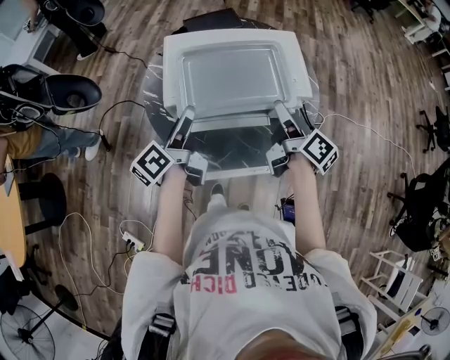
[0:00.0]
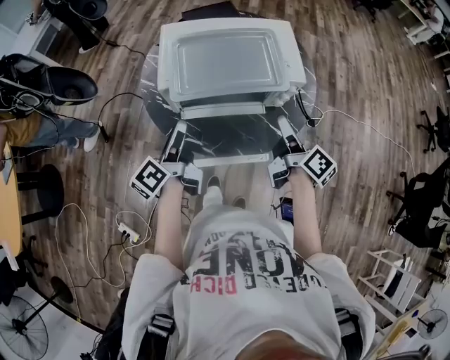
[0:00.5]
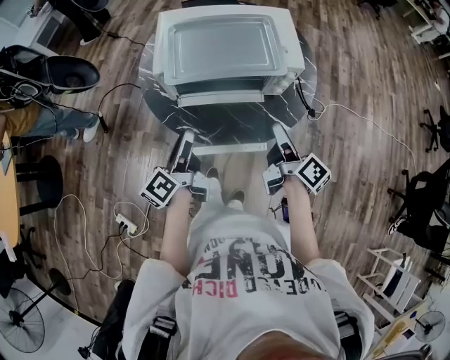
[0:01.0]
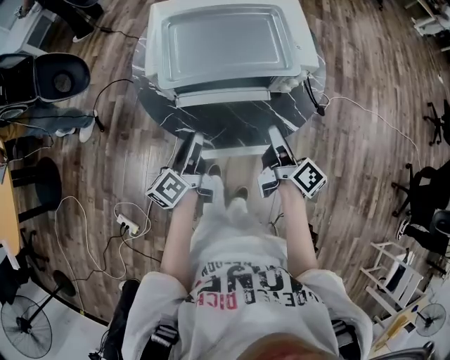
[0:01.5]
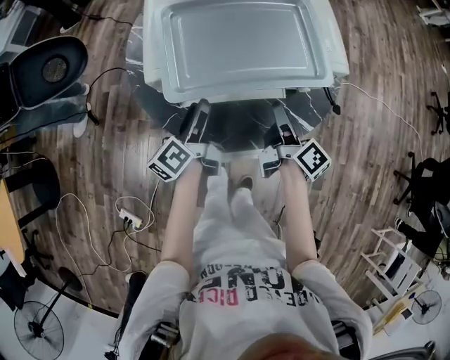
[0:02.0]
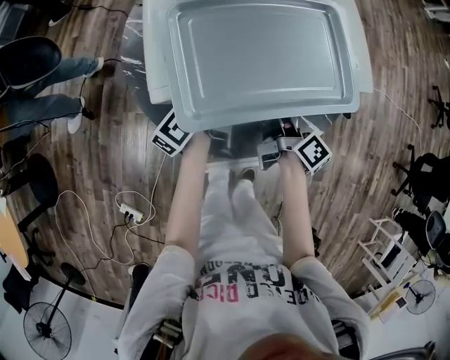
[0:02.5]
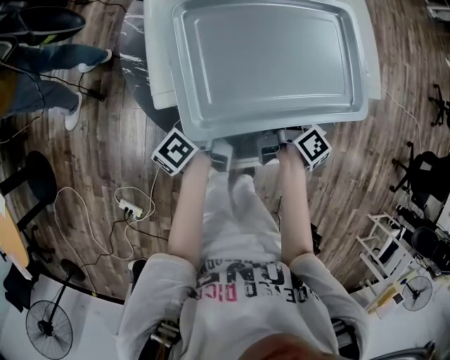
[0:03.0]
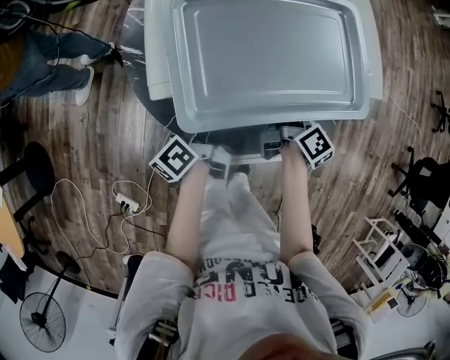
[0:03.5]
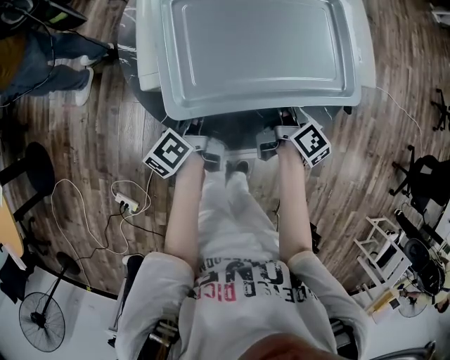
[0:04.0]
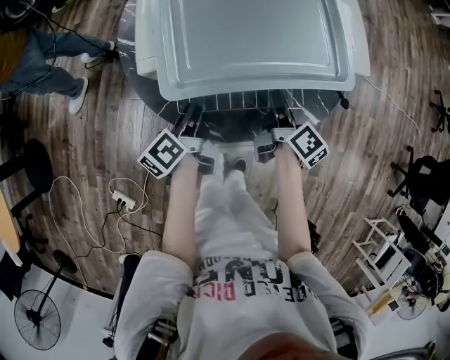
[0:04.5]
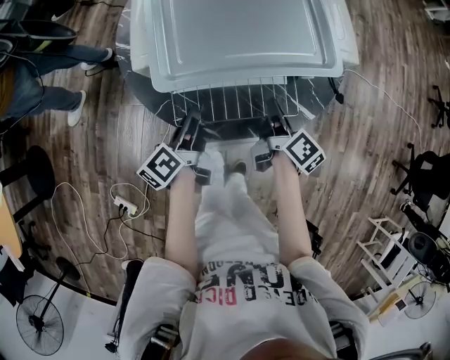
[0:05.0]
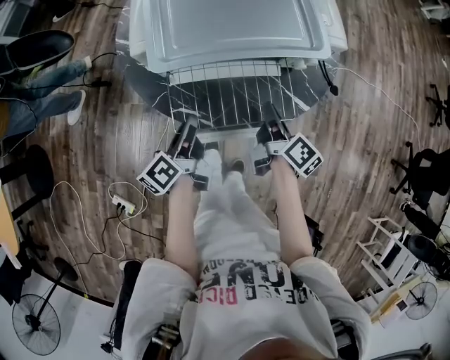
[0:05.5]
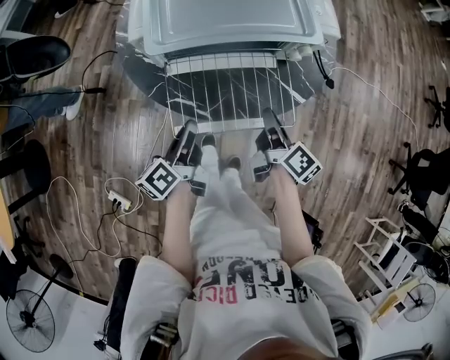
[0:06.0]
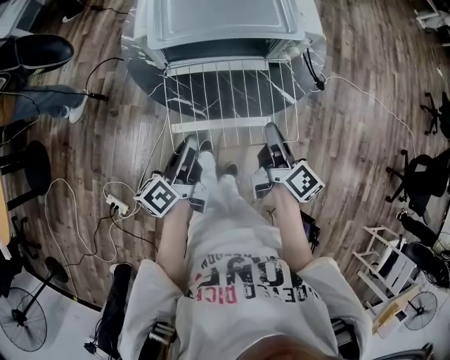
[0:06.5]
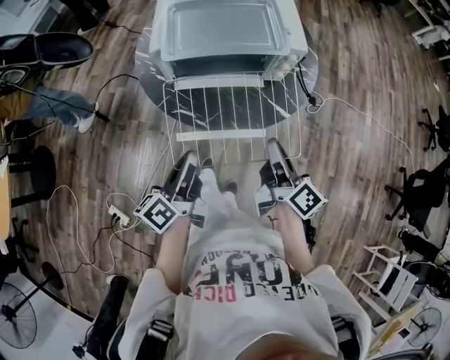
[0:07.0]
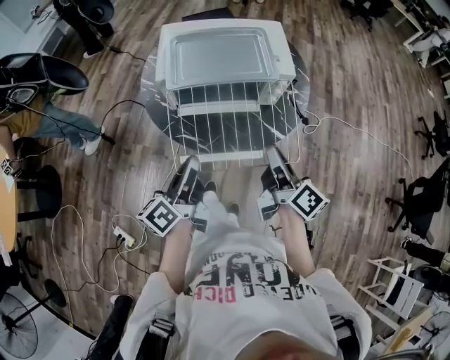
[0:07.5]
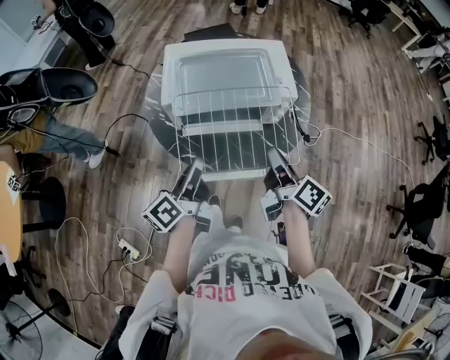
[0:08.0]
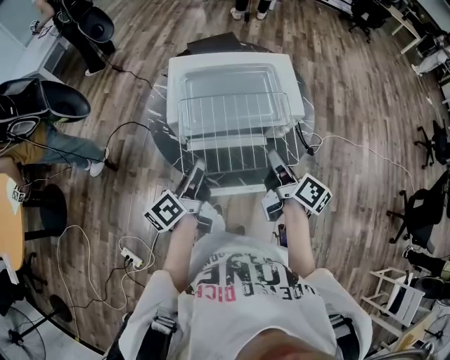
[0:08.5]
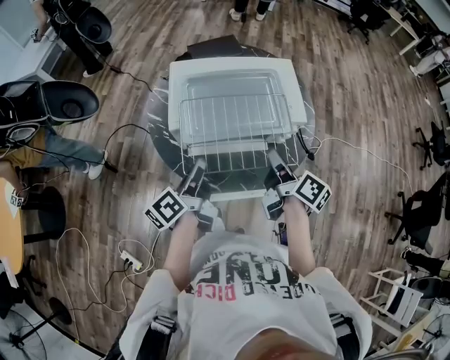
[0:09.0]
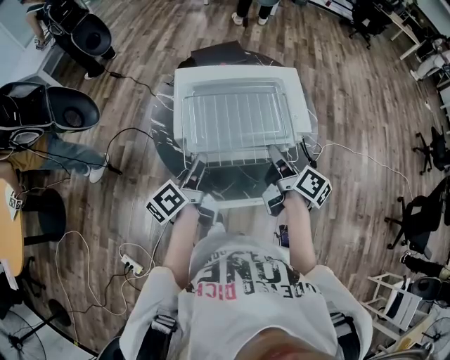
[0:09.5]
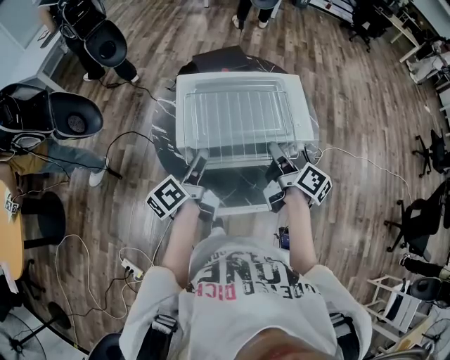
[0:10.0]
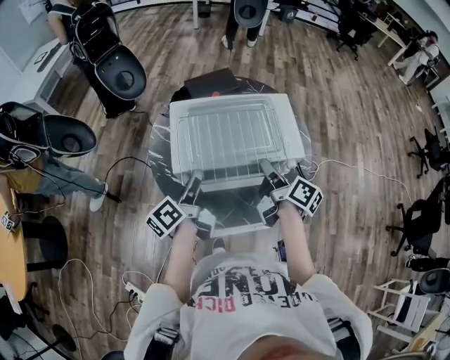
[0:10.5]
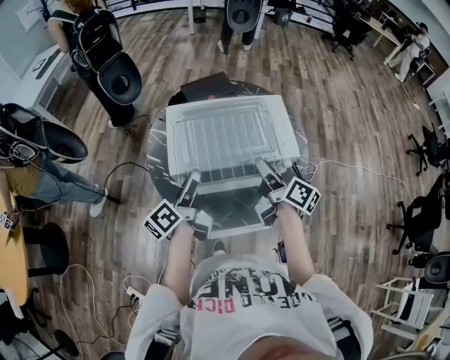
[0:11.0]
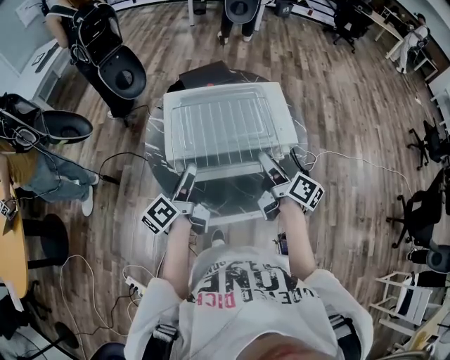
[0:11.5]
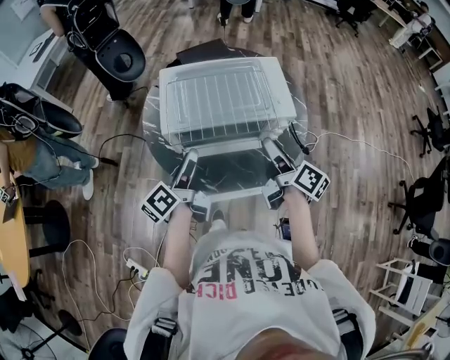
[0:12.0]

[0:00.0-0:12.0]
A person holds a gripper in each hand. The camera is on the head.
0:00.0 to 0:02.0: The grippers both shift downward by approximately 15 cm.
0:02.0 to 0:04.0: The left gripper travels forward and back again, roughly 10 cm each way, and closes up. Meanwhile the right gripper ends up approximately 5 cm from where it was, and closes up.
0:04.0 to 0:06.0: The two grippers go about 15 cm backward.
0:06.0 to 0:08.0: The grippers both shift upward by some 15 cm.
0:08.0 to 0:10.0: Both grippers travel together forward, approximately 15 cm.
0:10.0 to 0:12.0: Both grippers move backward, about 5 cm. The left gripper opens up. The right gripper opens up.

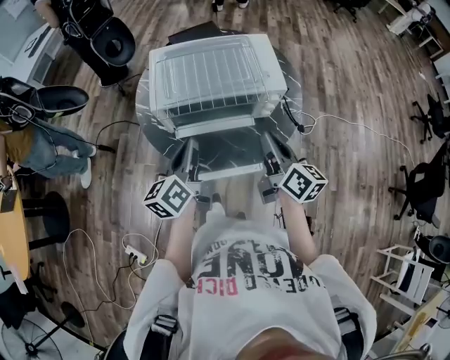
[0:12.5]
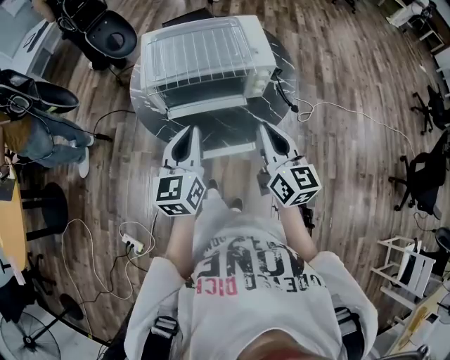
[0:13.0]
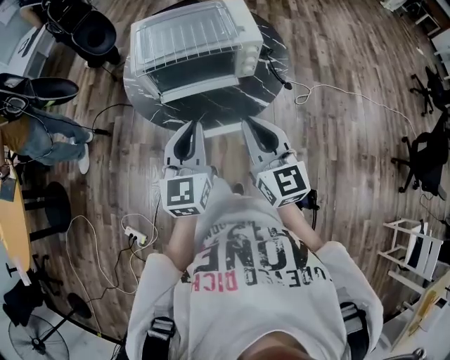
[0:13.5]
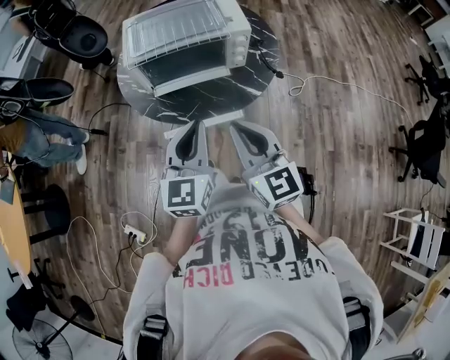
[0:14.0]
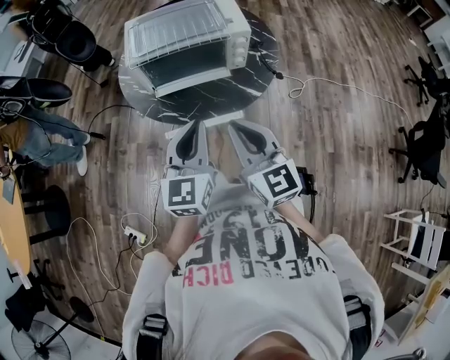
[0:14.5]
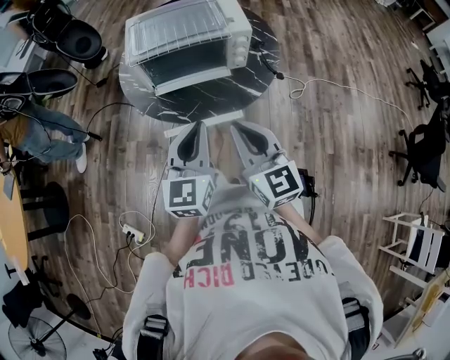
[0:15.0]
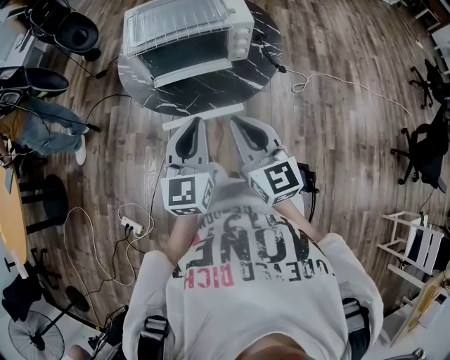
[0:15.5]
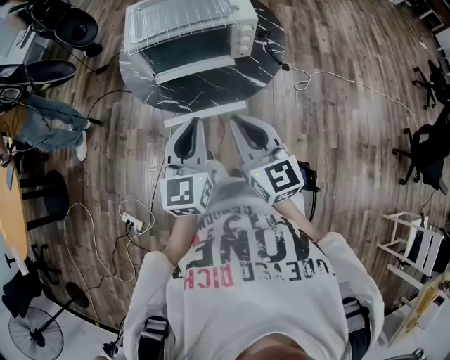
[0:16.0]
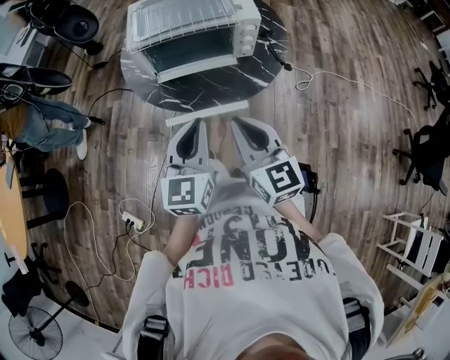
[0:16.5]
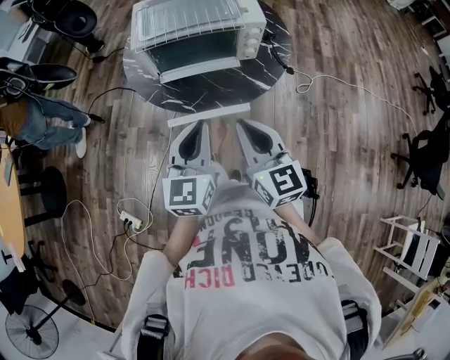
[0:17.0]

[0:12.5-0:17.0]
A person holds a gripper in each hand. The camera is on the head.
0:12.5 to 0:14.5: The right gripper travels backward by roughly 20 cm, and rolls counterclockwise, seen from behind, by some 40 degrees. Meanwhile the left gripper heads backward and to the right, covering approximately 20 cm, and rotates about 40 degrees.
0:14.5 to 0:17.0: The grippers make only small movements.

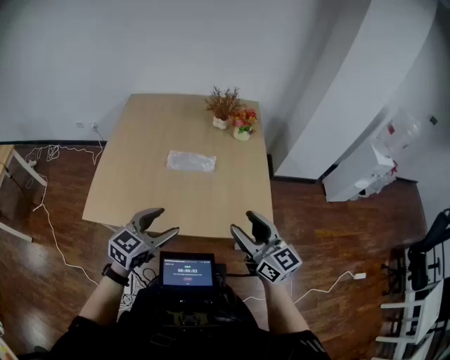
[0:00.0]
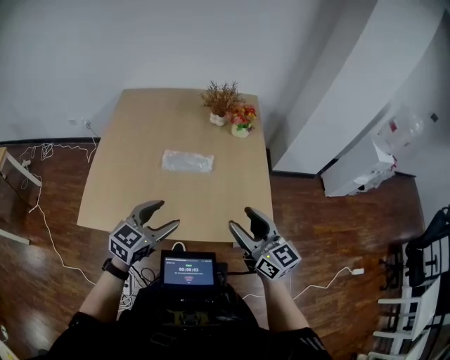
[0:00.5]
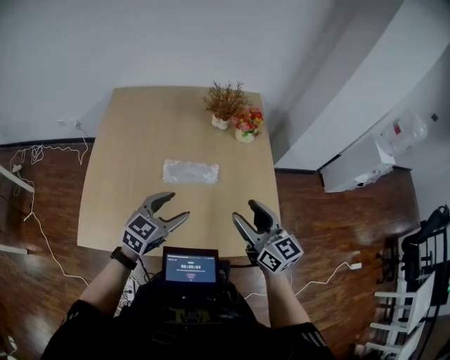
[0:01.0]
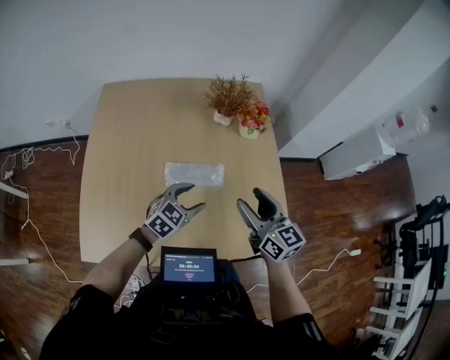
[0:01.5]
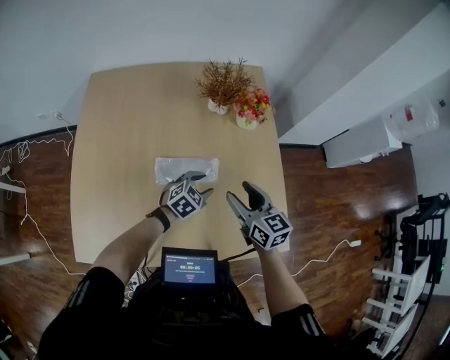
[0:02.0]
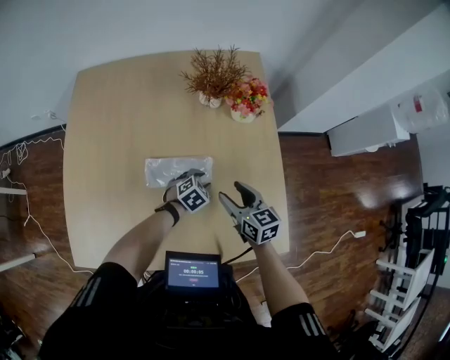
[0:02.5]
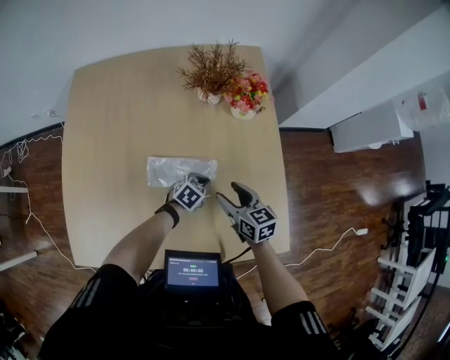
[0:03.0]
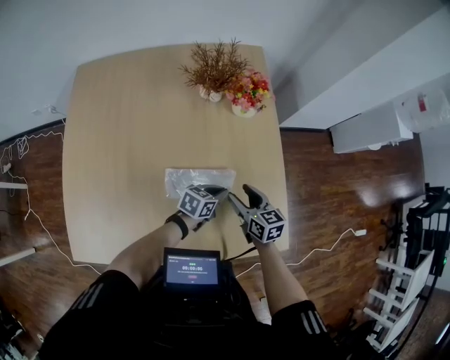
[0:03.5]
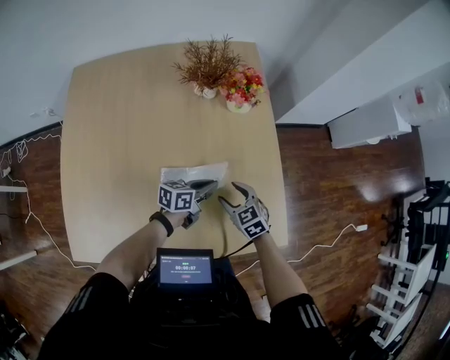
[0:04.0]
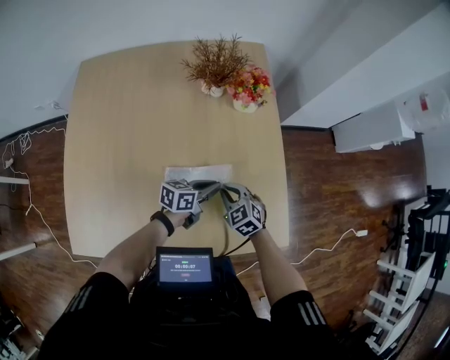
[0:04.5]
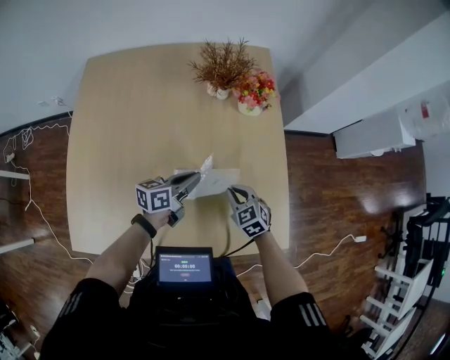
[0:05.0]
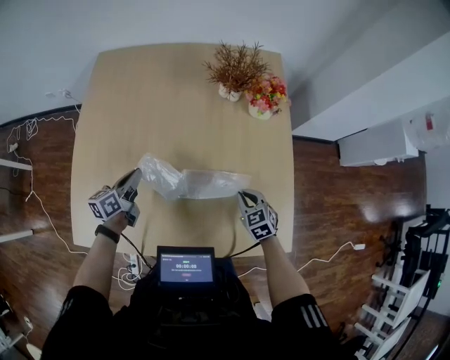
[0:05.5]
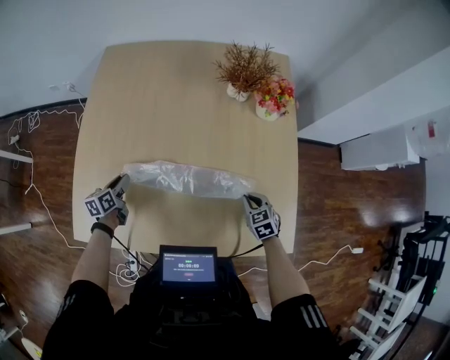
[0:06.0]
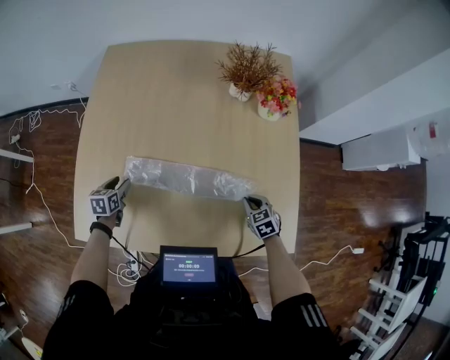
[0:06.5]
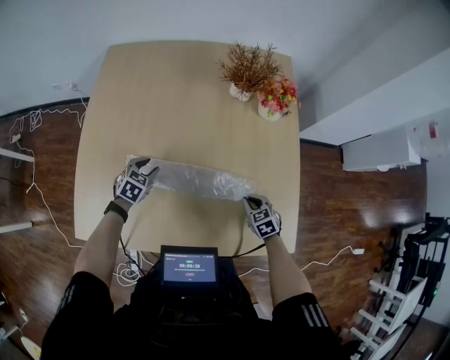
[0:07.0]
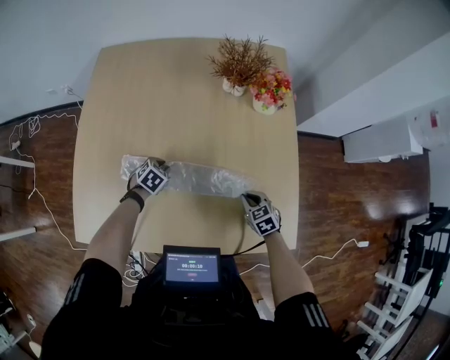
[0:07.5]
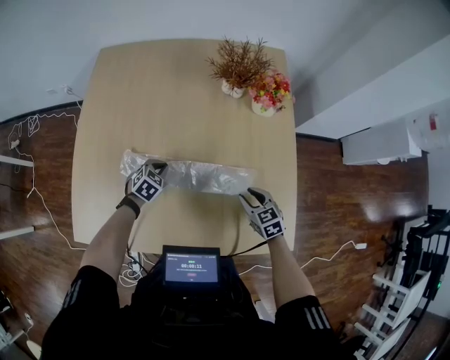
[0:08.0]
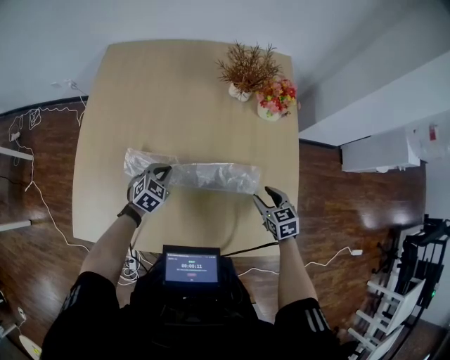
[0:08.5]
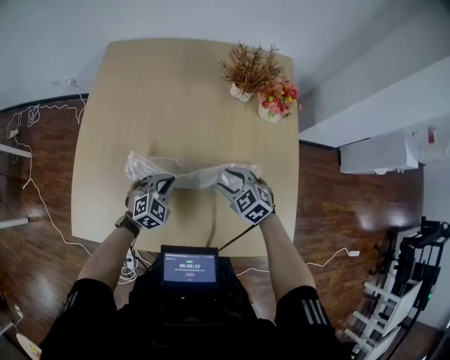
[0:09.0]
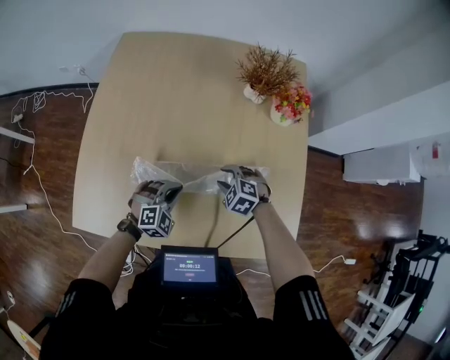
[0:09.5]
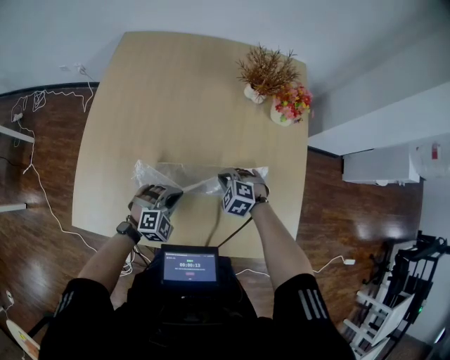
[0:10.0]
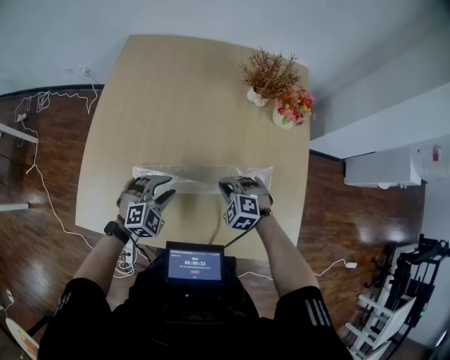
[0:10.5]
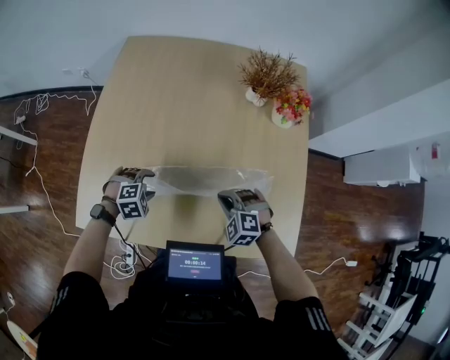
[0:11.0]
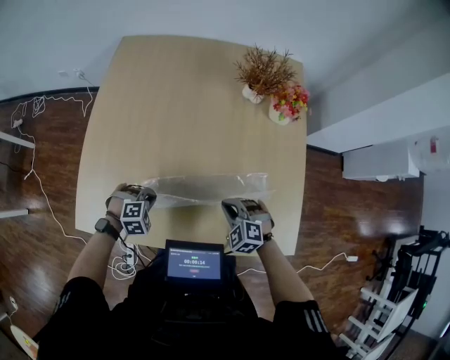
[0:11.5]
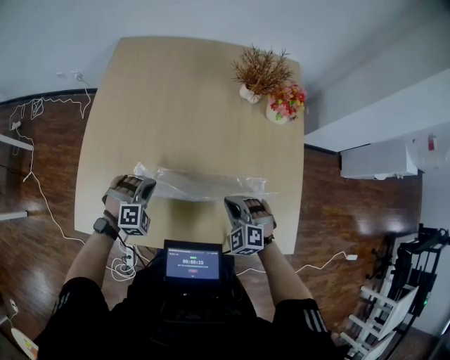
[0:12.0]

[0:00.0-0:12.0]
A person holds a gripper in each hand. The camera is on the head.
0:00.0 to 0:02.0: Both grippers move forward and downward, approximately 35 cm. The left gripper swivels roughly 30 degrees. The right gripper changes its angle by about 20 degrees.
0:02.0 to 0:04.0: The left gripper goes approximately 5 cm to the right, moves some 10 cm downward and comes back, twists some 50 degrees counterclockwise, seen from behind, and closes. The right gripper heads downward, covering approximately 15 cm, and turns by some 30 degrees.
0:04.0 to 0:06.0: The left gripper heads to the left, covering approximately 40 cm, and changes its angle by some 50 degrees, while the right gripper shifts by approximately 5 cm, and closes.
0:06.0 to 0:08.0: The left gripper moves to the right, approximately 20 cm, rotates around the line of its fingers by roughly 60 degrees, clockwise from behind, and opens and closes again. Meanwhile the right gripper opens up.
0:08.0 to 0:10.0: The right gripper is displaced to the left and forward by about 15 cm, rolls counterclockwise, seen from behind, by about 50 degrees, and closes its fingers, while the left gripper travels backward by roughly 10 cm, and changes its angle by some 40 degrees.
0:10.0 to 0:12.0: The left gripper heads to the left, covering approximately 10 cm, turns by roughly 20 degrees, and opens, then closes once more; the right gripper heads backward and upward, covering some 10 cm.
